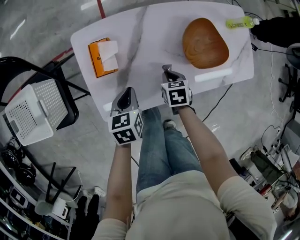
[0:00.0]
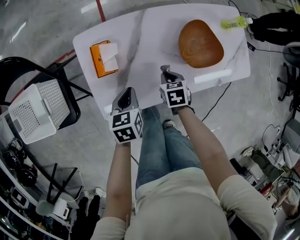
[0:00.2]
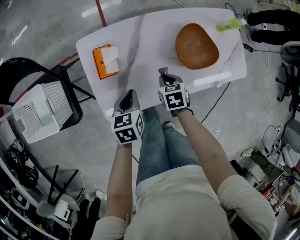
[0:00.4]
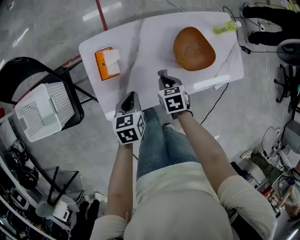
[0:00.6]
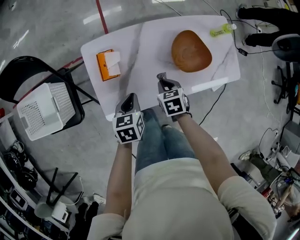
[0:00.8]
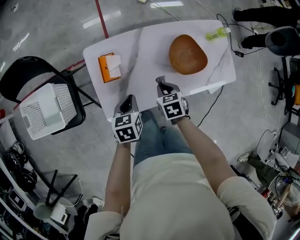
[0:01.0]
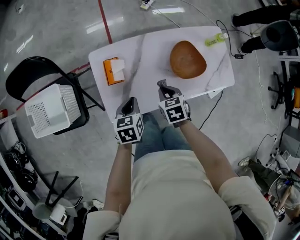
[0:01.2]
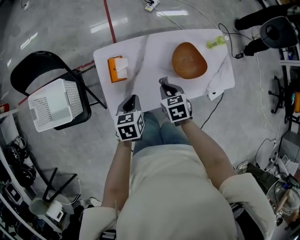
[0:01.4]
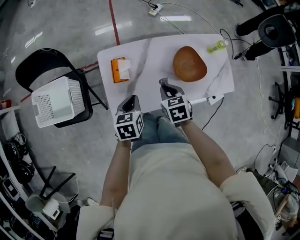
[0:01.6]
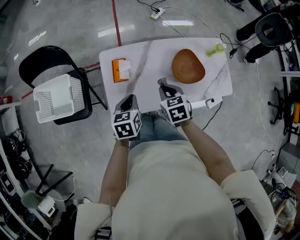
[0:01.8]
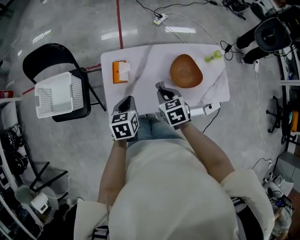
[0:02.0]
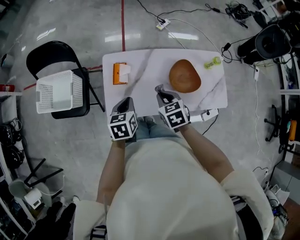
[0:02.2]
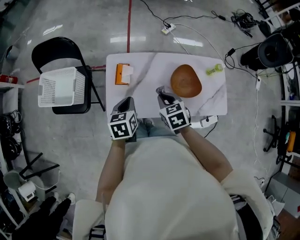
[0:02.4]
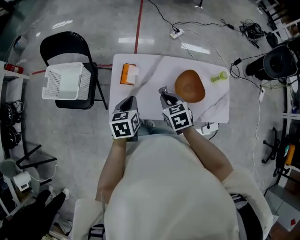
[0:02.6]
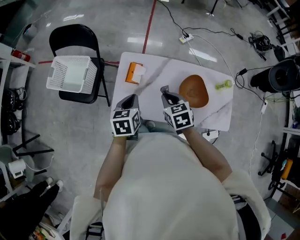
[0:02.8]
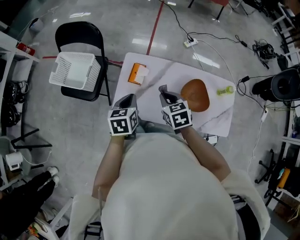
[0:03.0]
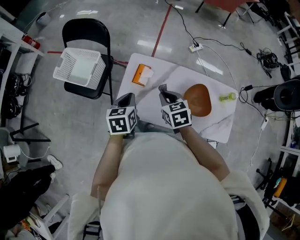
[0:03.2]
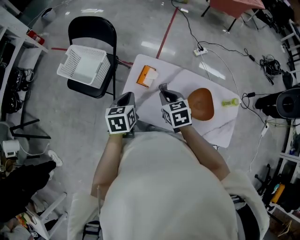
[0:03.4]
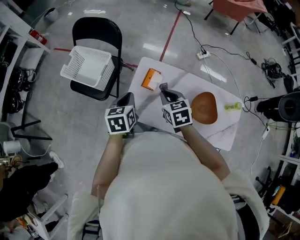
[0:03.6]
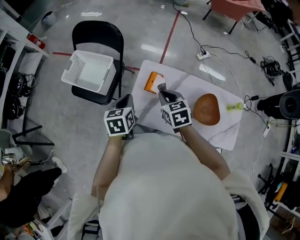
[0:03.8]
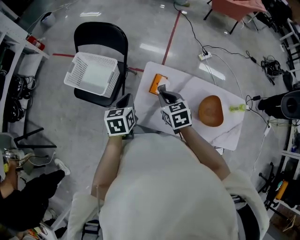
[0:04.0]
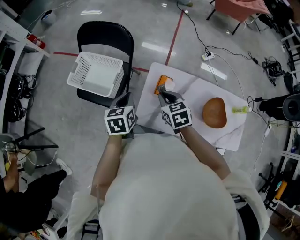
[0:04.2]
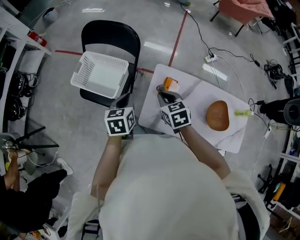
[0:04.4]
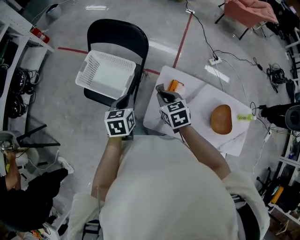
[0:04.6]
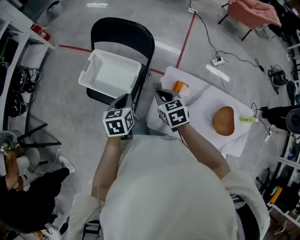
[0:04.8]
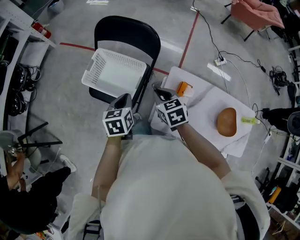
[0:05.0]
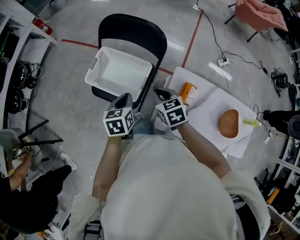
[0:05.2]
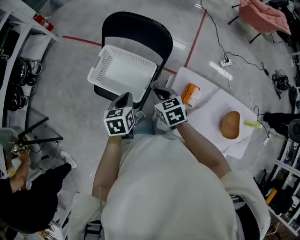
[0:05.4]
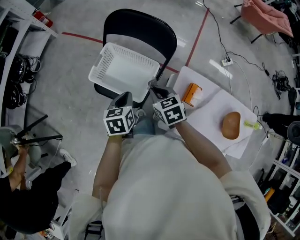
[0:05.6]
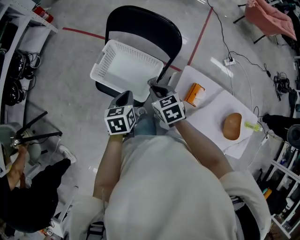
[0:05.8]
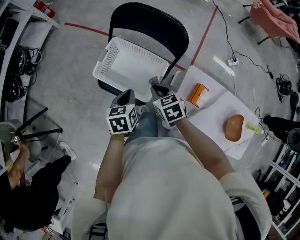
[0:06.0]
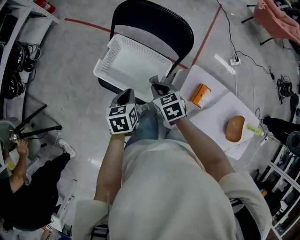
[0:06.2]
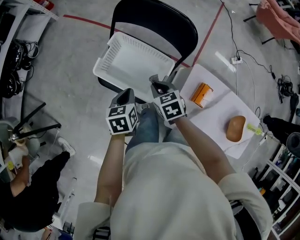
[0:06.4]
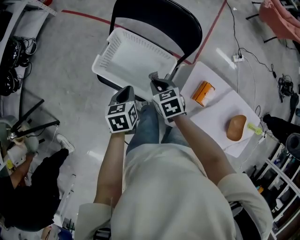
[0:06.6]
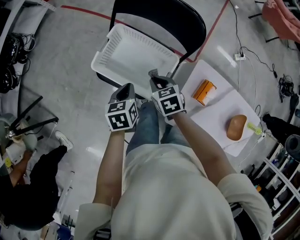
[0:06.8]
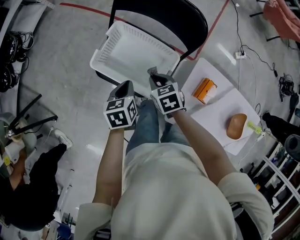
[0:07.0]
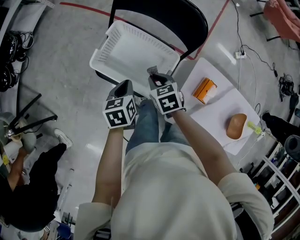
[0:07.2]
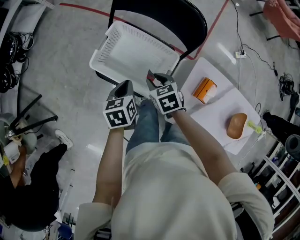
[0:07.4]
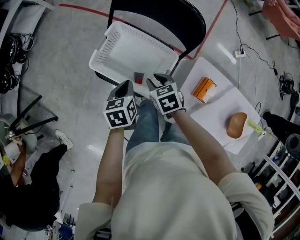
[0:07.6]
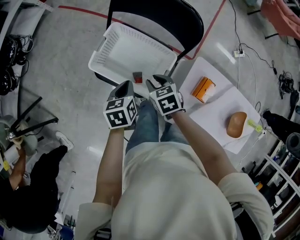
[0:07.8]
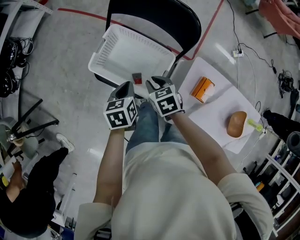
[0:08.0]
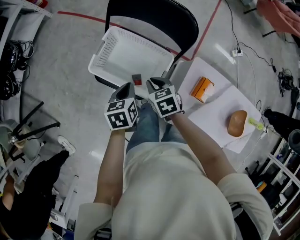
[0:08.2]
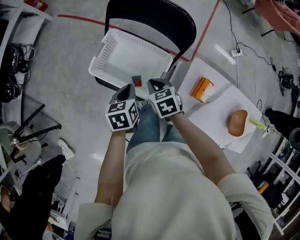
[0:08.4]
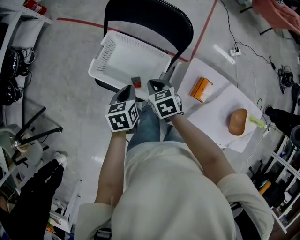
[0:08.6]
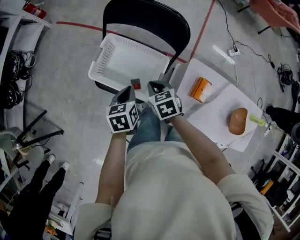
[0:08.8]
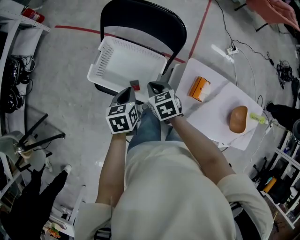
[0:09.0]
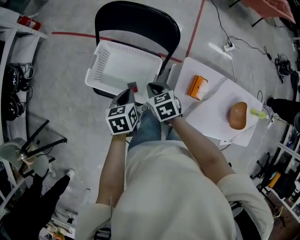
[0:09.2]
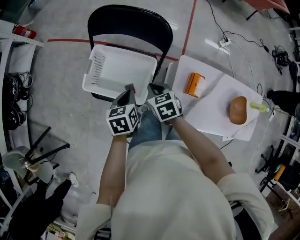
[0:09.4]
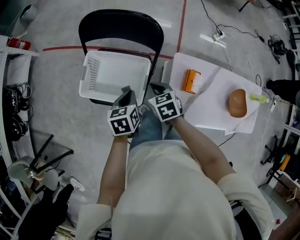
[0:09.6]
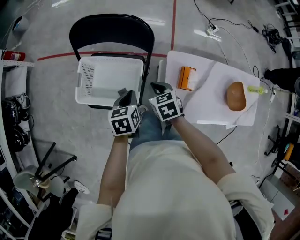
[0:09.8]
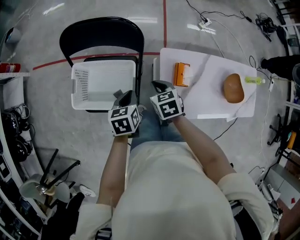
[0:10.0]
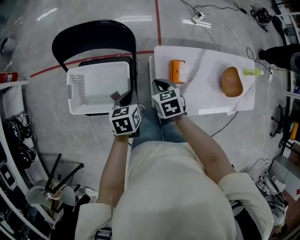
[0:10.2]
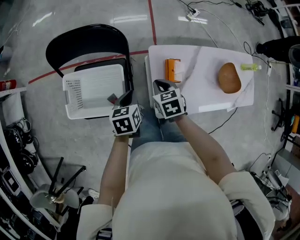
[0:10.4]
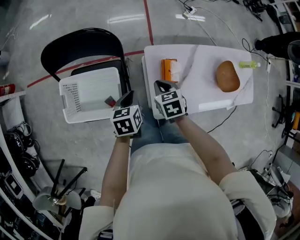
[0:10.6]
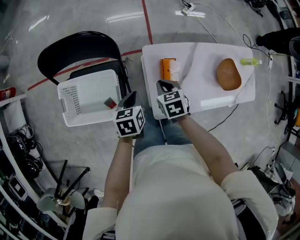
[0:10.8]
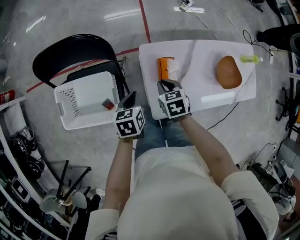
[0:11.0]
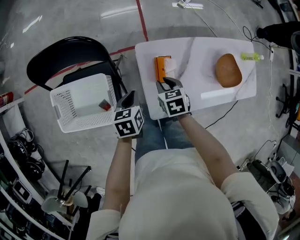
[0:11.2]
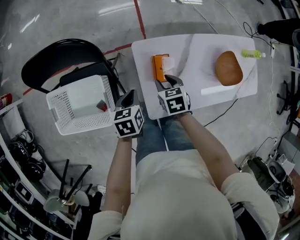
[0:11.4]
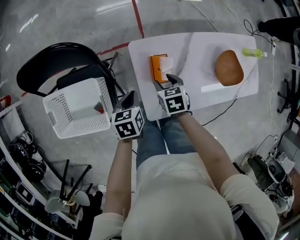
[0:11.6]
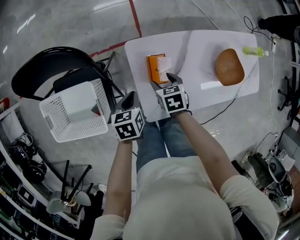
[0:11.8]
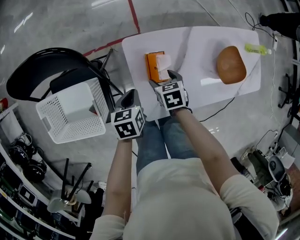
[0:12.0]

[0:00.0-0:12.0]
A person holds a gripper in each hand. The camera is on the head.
0:00.0 to 0:01.6: The grippers both shift upward by some 20 cm.
0:01.6 to 0:03.0: The grippers both shift upward by about 10 cm. The right gripper changes its angle by some 30 degrees. The left gripper rotates about 20 degrees.
0:03.0 to 0:04.4: The grippers both shift to the left and forward by approximately 25 cm.
0:04.4 to 0:06.0: Both grippers travel together to the left and forward, roughly 25 cm.
0:06.0 to 0:07.6: The grippers both shift downward by some 5 cm.
0:07.6 to 0:09.0: The left gripper changes place by some 5 cm, while the right gripper changes place by some 5 cm.
0:09.0 to 0:10.4: The right gripper shifts by approximately 20 cm, and rotates about 30 degrees, while the left gripper moves approximately 15 cm, and rotates some 30 degrees.
0:10.4 to 0:12.0: The right gripper moves downward and to the right, approximately 20 cm, and opens up, while the left gripper travels to the right and downward by about 20 cm.

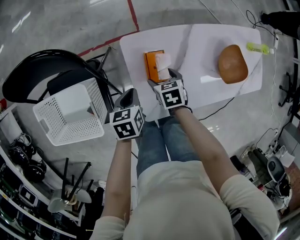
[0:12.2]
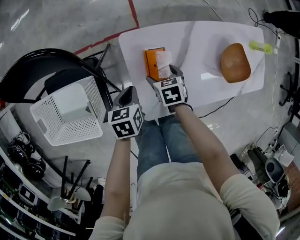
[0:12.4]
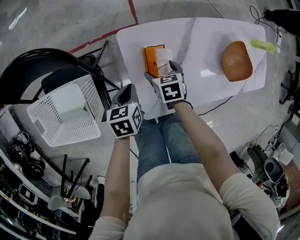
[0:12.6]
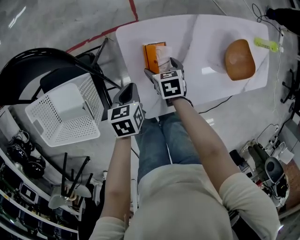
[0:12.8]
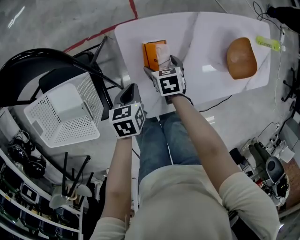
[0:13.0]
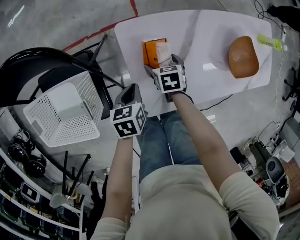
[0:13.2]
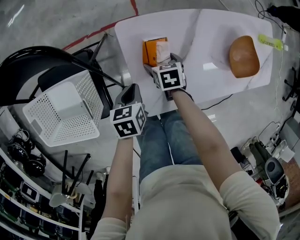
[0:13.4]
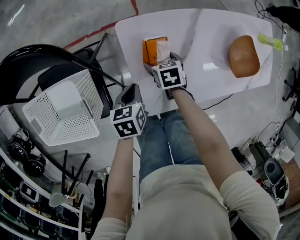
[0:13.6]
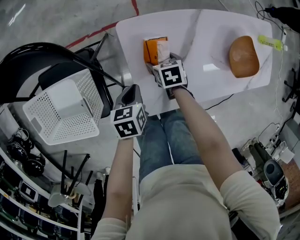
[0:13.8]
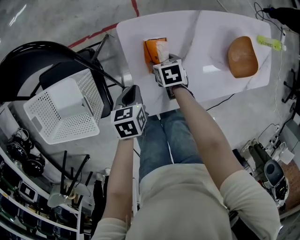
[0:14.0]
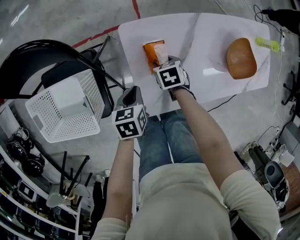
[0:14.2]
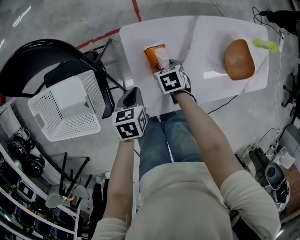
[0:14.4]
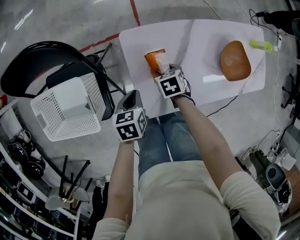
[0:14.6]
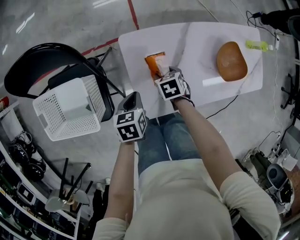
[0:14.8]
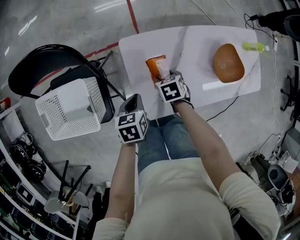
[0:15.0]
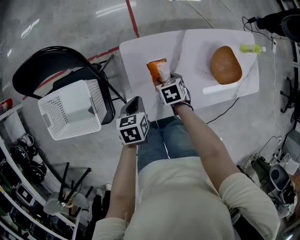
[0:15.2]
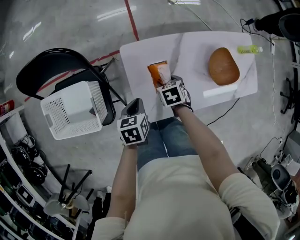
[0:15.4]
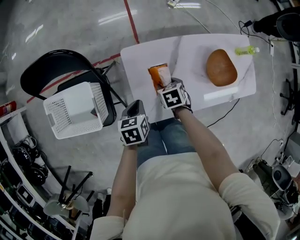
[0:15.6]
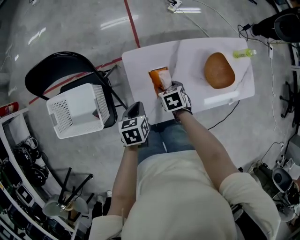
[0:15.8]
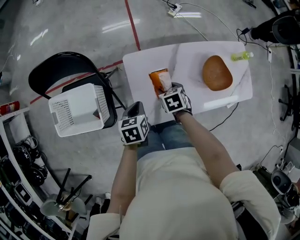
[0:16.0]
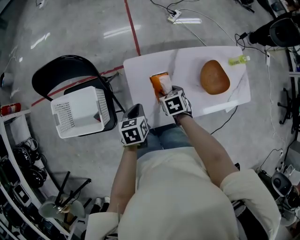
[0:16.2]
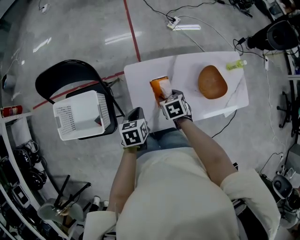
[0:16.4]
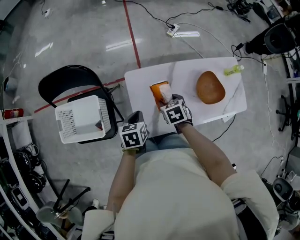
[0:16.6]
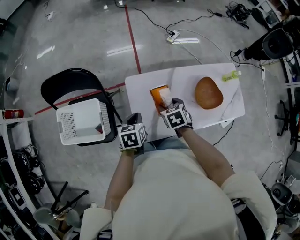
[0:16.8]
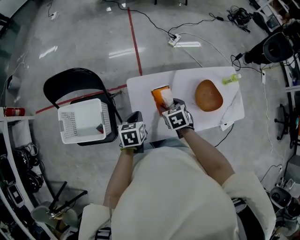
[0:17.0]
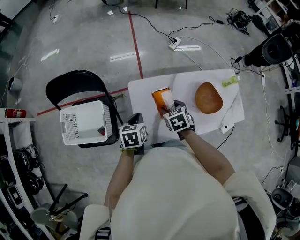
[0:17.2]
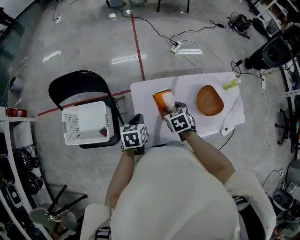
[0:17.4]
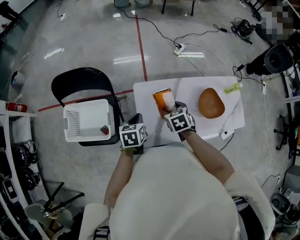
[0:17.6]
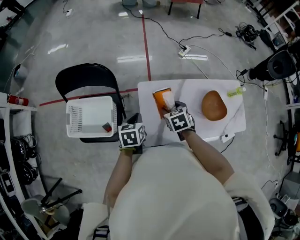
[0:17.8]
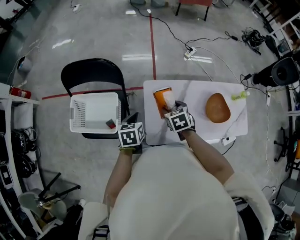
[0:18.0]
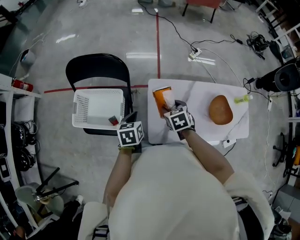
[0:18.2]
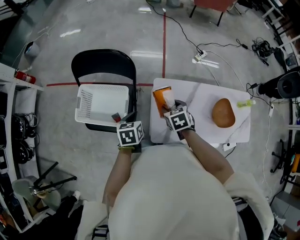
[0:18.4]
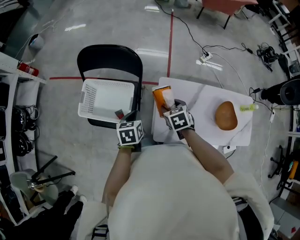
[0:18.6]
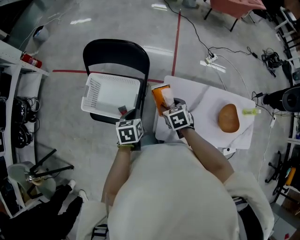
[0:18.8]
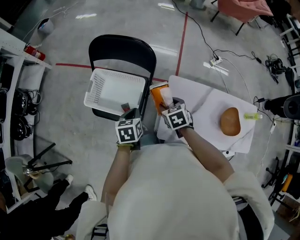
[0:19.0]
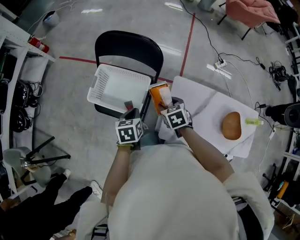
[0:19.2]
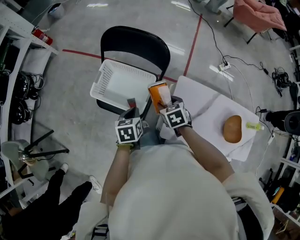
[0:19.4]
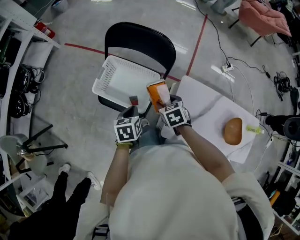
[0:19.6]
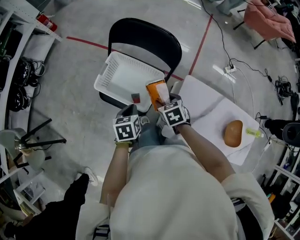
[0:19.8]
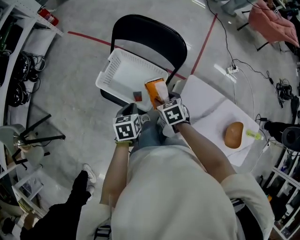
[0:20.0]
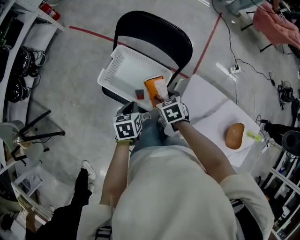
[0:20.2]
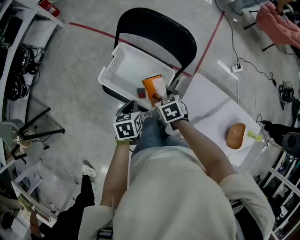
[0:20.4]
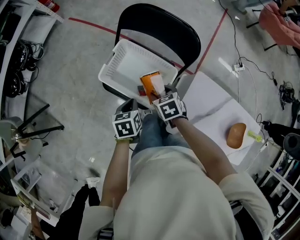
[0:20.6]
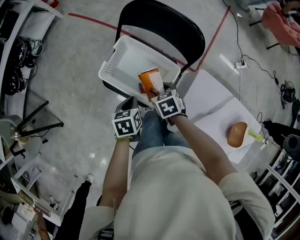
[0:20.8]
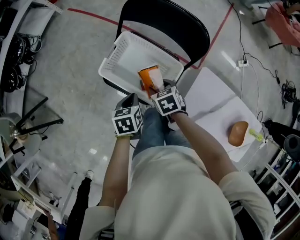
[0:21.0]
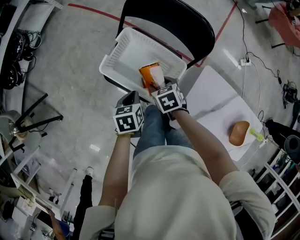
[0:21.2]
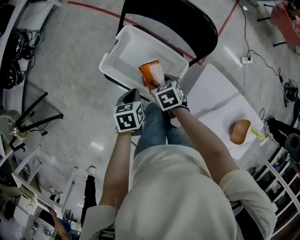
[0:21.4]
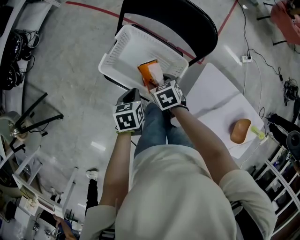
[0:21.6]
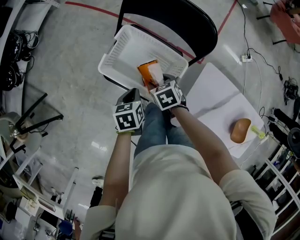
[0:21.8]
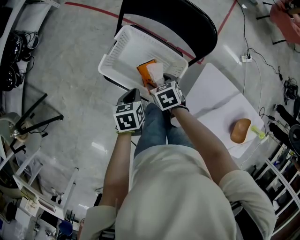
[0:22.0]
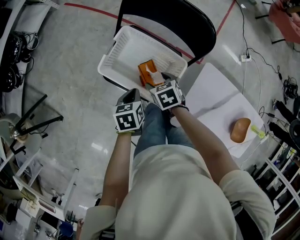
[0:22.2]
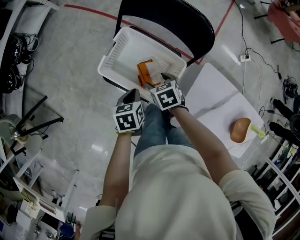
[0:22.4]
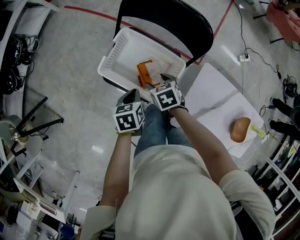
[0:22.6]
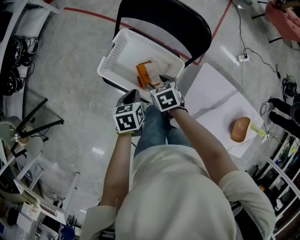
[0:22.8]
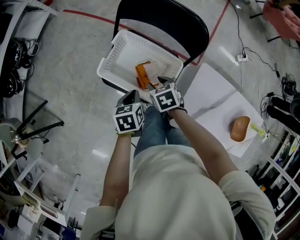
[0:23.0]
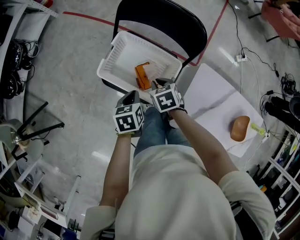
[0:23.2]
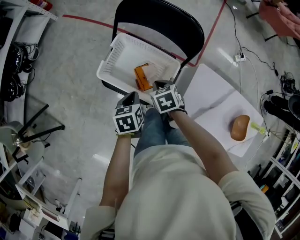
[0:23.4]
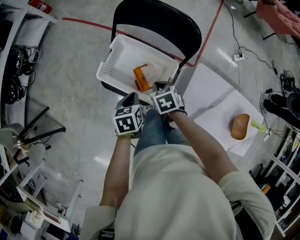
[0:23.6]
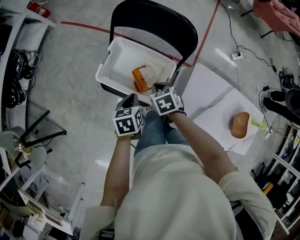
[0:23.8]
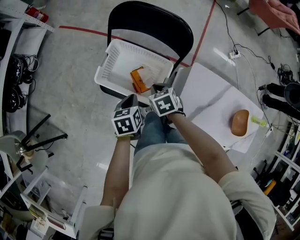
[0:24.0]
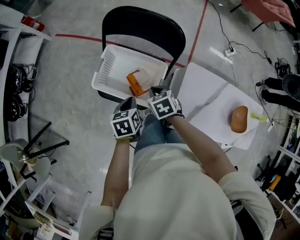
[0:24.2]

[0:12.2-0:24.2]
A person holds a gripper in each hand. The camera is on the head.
0:12.2 to 0:13.8: The right gripper heads downward, covering some 10 cm. Meanwhile the left gripper shifts about 5 cm downward.
0:13.8 to 0:15.2: Both grippers travel together upward, about 10 cm. The right gripper closes its fingers.
0:15.2 to 0:16.6: The two grippers go about 10 cm upward.
0:16.6 to 0:18.2: The left gripper is displaced to the left by roughly 10 cm, while the right gripper goes about 15 cm to the left and upward.
0:18.2 to 0:19.8: The left gripper moves roughly 20 cm, and changes its angle by some 20 degrees, while the right gripper ends up roughly 25 cm from where it was, and turns by approximately 30 degrees.
0:19.8 to 0:21.2: The right gripper shifts approximately 15 cm to the left, downward and forward; the left gripper heads downward and to the left, covering roughly 10 cm.
0:21.2 to 0:22.6: There are only small adjustments of the grippers.
0:22.6 to 0:24.2: The left gripper ends up roughly 5 cm from where it was, while the right gripper moves upward, approximately 5 cm, and closes up.
